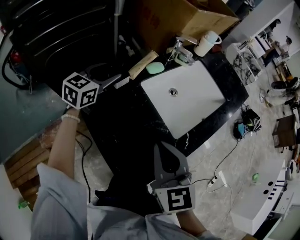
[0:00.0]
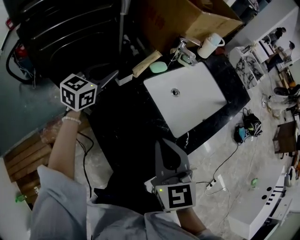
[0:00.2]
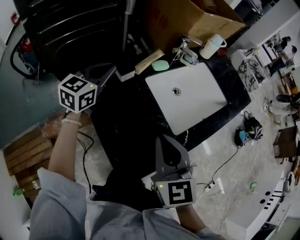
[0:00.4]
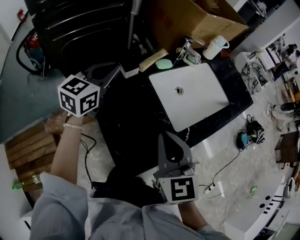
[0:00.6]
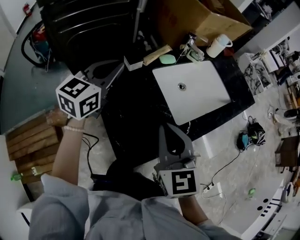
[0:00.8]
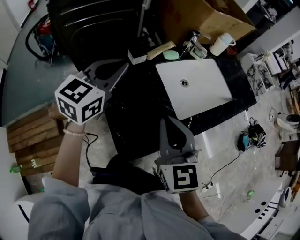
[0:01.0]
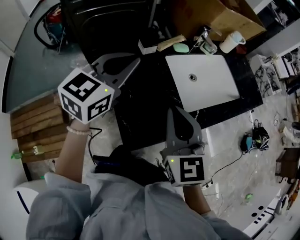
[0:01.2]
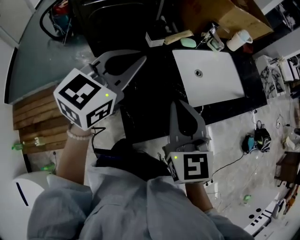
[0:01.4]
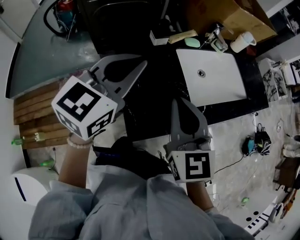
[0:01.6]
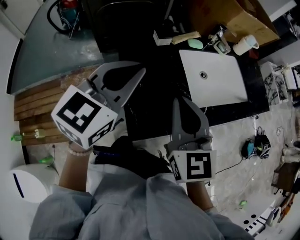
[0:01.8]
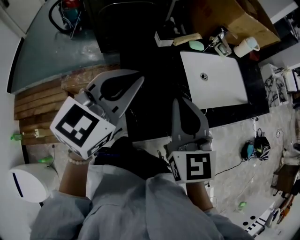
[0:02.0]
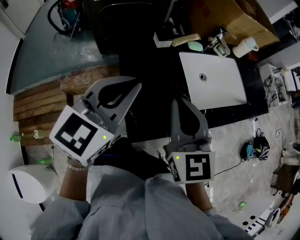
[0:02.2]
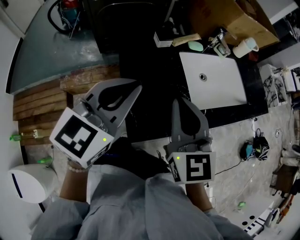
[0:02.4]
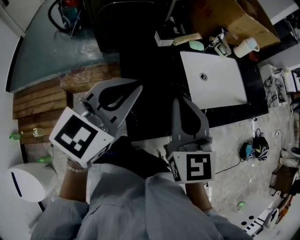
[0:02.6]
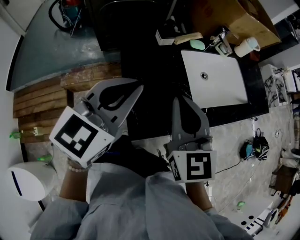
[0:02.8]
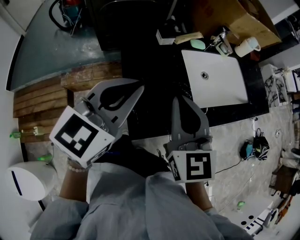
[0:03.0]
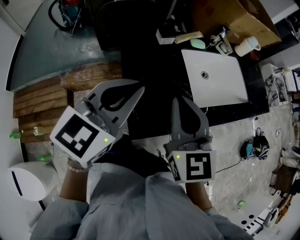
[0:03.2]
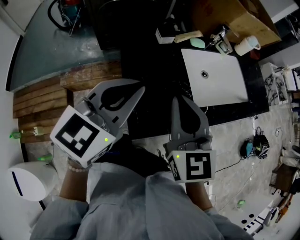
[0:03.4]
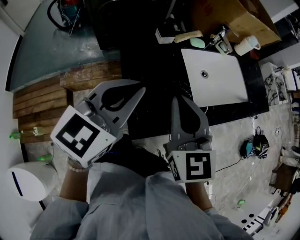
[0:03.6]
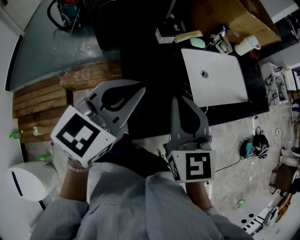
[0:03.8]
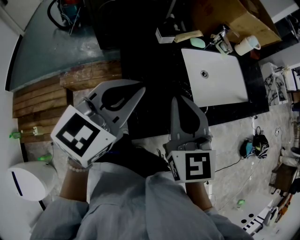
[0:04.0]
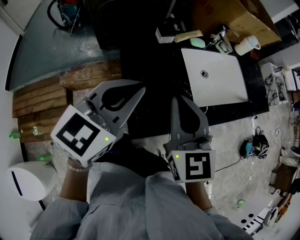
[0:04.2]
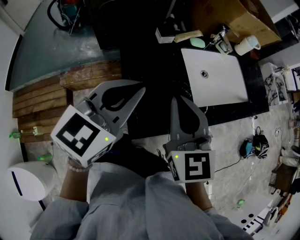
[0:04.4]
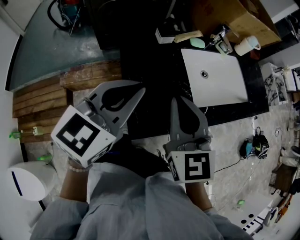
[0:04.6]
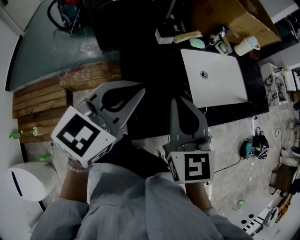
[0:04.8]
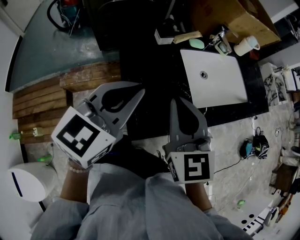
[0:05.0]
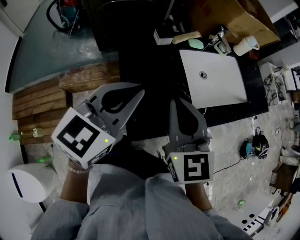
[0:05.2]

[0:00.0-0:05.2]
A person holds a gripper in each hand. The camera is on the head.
0:00.0 to 0:01.8: The left gripper shifts about 30 cm backward and upward, turns by about 20 degrees, and closes its fingers. Meanwhile the right gripper goes about 10 cm backward and upward, and turns by roughly 20 degrees.
0:01.8 to 0:03.4: The grippers move only a little.
0:03.4 to 0:05.2: Both grippers stay about where they are.

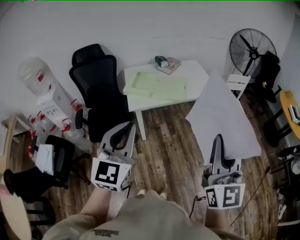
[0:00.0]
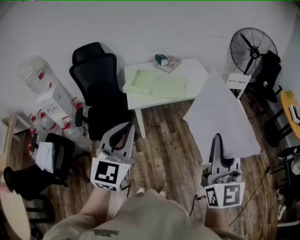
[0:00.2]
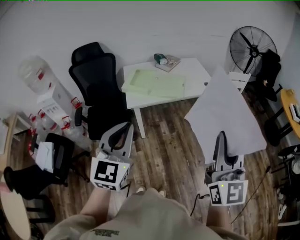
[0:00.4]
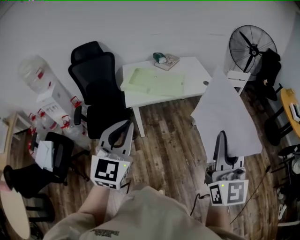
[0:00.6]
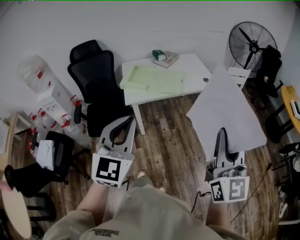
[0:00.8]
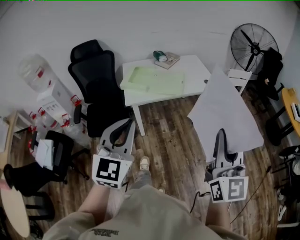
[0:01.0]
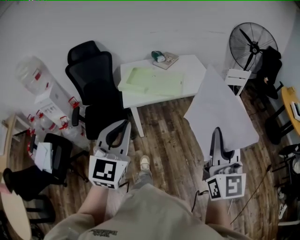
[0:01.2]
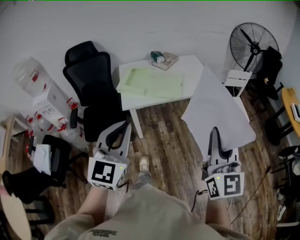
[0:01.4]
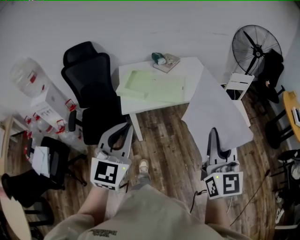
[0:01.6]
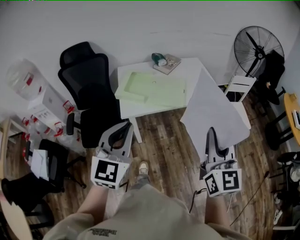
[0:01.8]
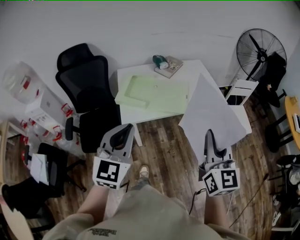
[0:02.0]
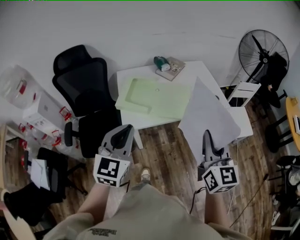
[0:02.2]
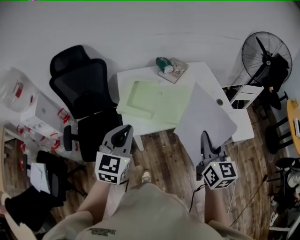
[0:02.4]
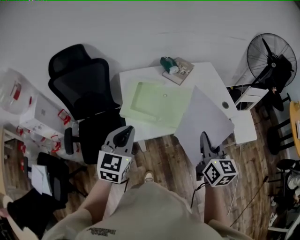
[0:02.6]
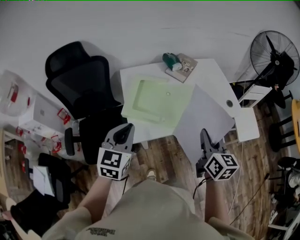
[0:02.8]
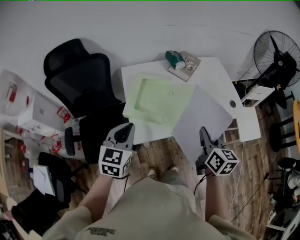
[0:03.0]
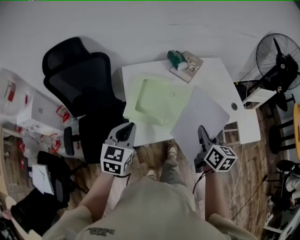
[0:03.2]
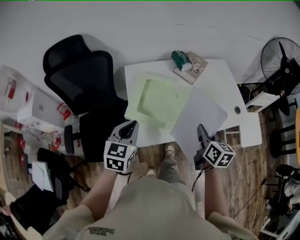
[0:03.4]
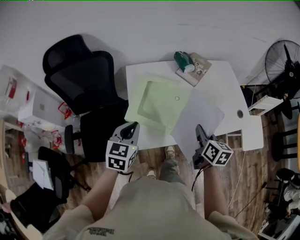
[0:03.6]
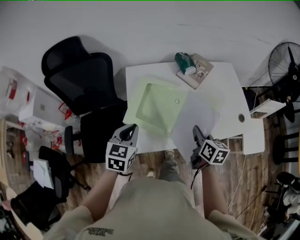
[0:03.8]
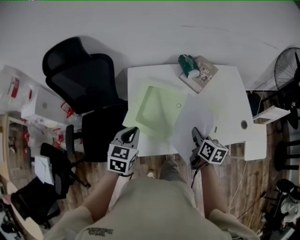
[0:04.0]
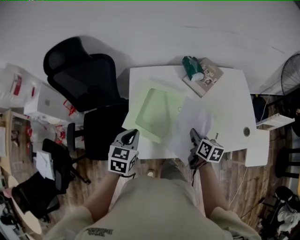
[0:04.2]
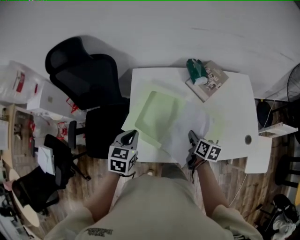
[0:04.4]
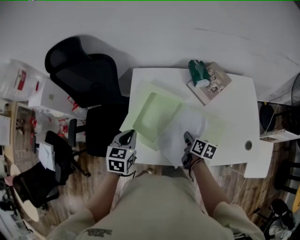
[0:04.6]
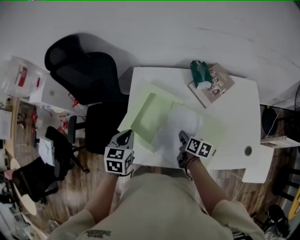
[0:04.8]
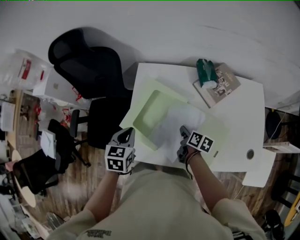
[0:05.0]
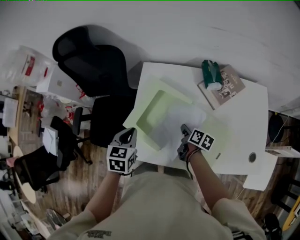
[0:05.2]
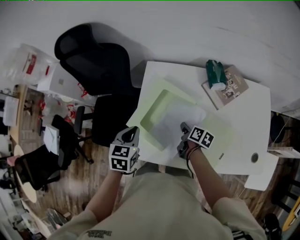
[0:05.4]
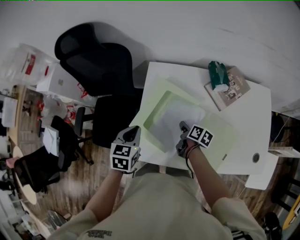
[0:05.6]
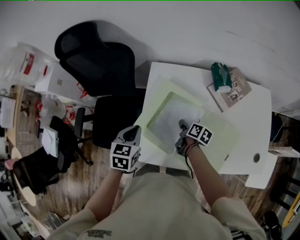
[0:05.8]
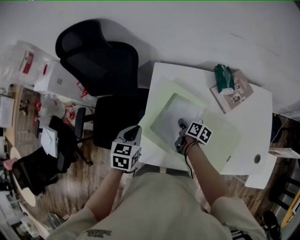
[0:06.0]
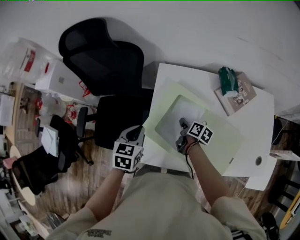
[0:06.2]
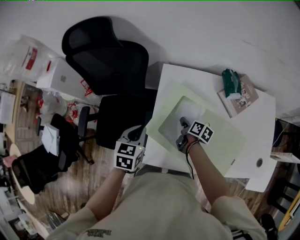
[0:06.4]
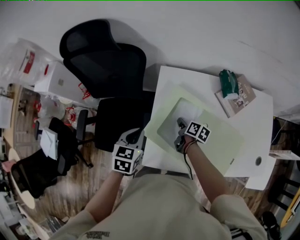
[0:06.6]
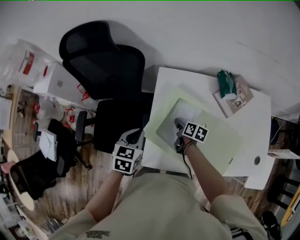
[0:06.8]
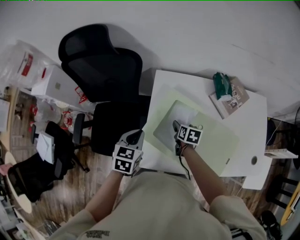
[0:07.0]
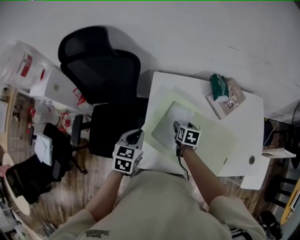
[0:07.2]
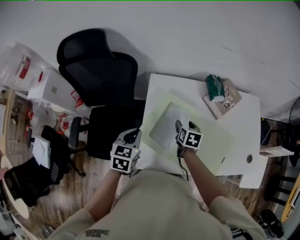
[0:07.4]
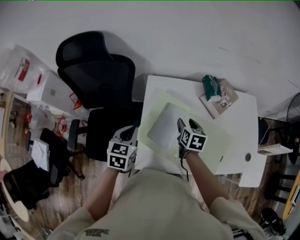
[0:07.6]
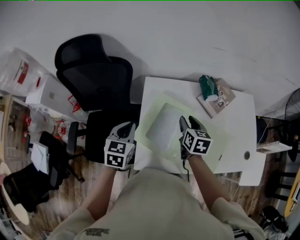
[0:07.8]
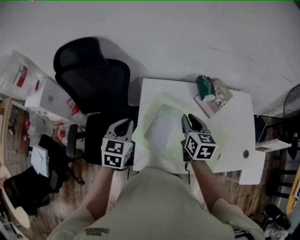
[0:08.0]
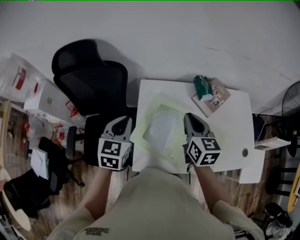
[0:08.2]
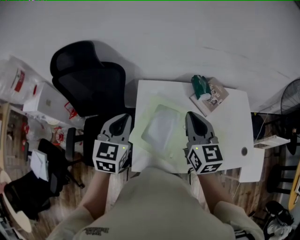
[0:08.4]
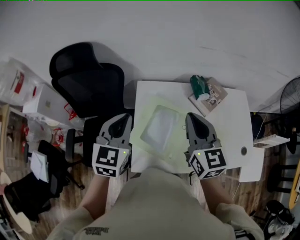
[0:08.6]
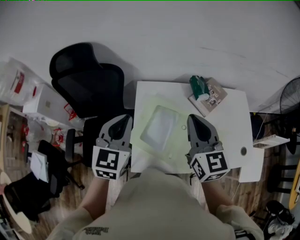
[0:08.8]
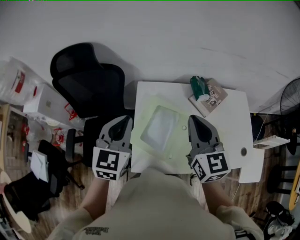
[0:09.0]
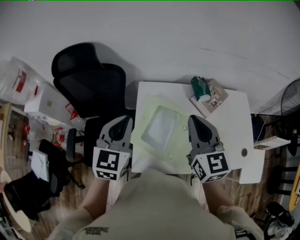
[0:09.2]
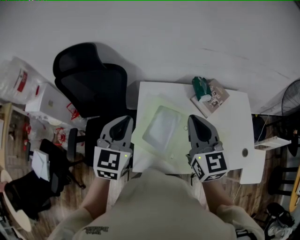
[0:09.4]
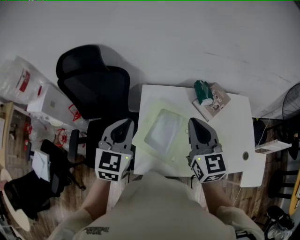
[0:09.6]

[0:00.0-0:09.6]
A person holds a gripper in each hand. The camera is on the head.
0:00.0 to 0:01.6: The left gripper heads forward, covering approximately 10 cm, while the right gripper goes about 15 cm forward and downward.
0:01.6 to 0:03.2: The pair of grippers is taken forward and to the left, approximately 40 cm. The two grippers go approximately 20 cm downward. The right gripper rotates some 40 degrees, while the left gripper swivels approximately 30 degrees.
0:03.2 to 0:04.8: The left gripper shifts by approximately 20 cm, and changes its angle by approximately 30 degrees. The right gripper heads downward, covering roughly 25 cm, and rotates some 40 degrees.
0:04.8 to 0:06.4: The right gripper travels to the left and forward by approximately 20 cm. Meanwhile the left gripper travels to the left by about 10 cm.
0:06.4 to 0:08.0: The left gripper is displaced upward by roughly 10 cm, while the right gripper goes some 25 cm upward, twists some 40 degrees counterclockwise, seen from behind, and opens, then closes again.
0:08.0 to 0:09.6: Both grippers move upward, approximately 10 cm. The right gripper changes its angle by about 20 degrees.

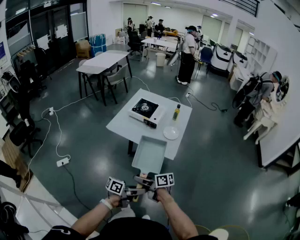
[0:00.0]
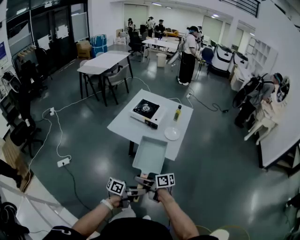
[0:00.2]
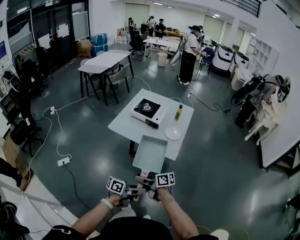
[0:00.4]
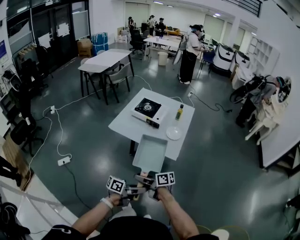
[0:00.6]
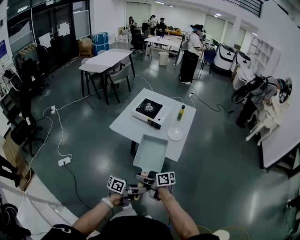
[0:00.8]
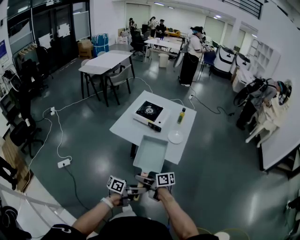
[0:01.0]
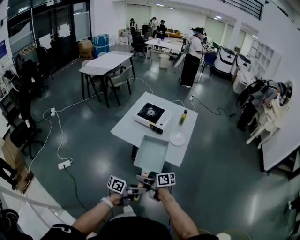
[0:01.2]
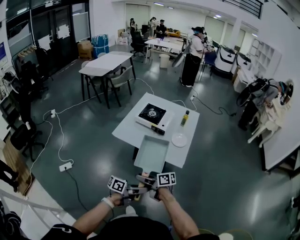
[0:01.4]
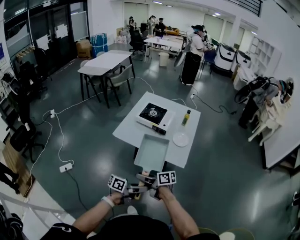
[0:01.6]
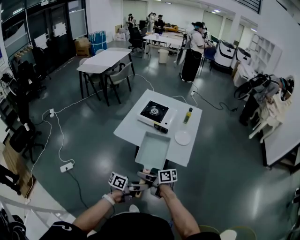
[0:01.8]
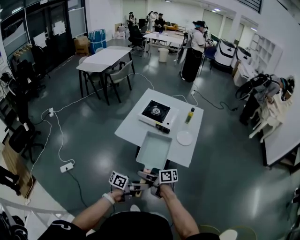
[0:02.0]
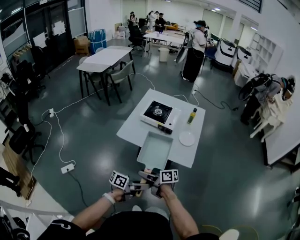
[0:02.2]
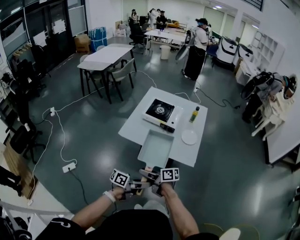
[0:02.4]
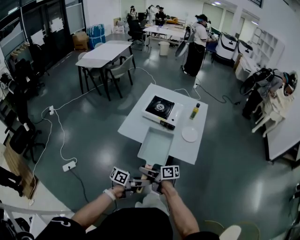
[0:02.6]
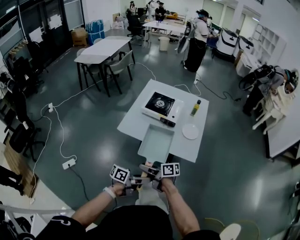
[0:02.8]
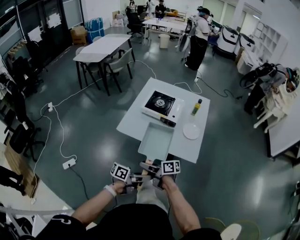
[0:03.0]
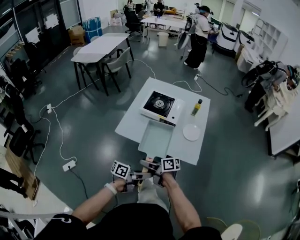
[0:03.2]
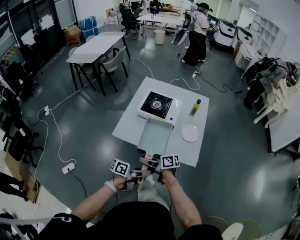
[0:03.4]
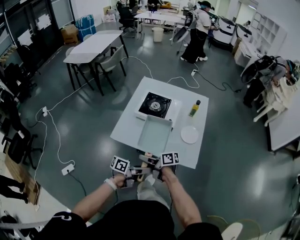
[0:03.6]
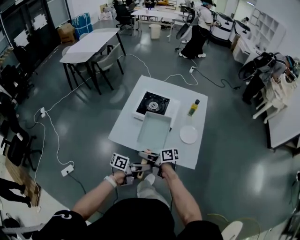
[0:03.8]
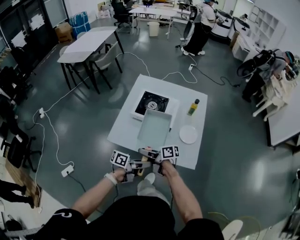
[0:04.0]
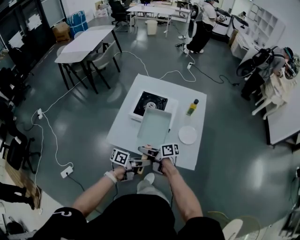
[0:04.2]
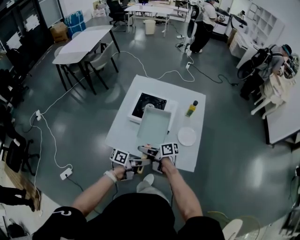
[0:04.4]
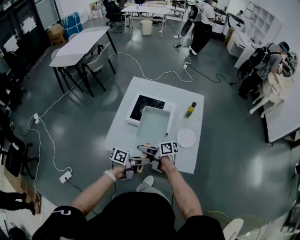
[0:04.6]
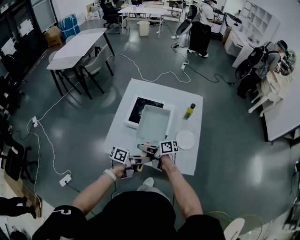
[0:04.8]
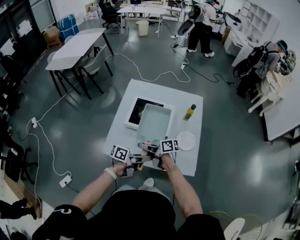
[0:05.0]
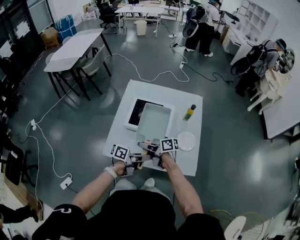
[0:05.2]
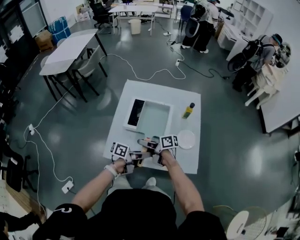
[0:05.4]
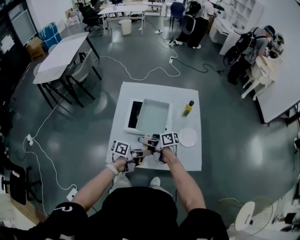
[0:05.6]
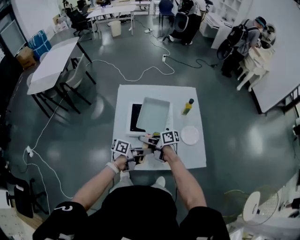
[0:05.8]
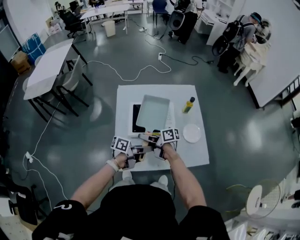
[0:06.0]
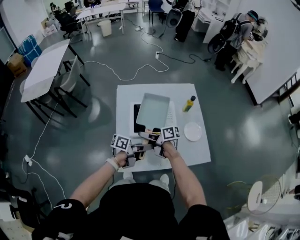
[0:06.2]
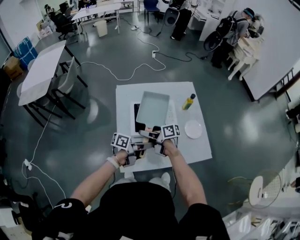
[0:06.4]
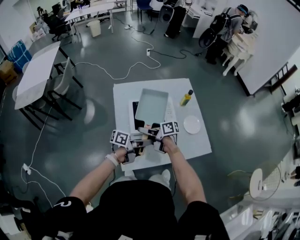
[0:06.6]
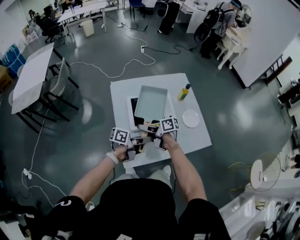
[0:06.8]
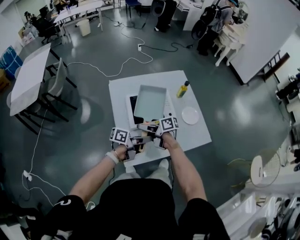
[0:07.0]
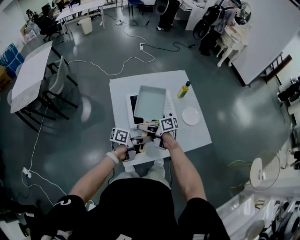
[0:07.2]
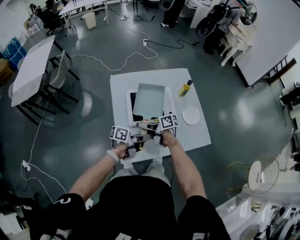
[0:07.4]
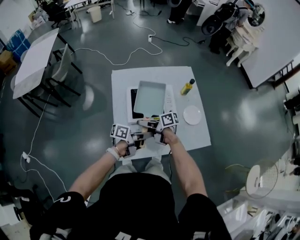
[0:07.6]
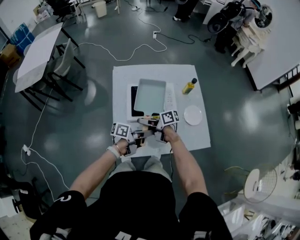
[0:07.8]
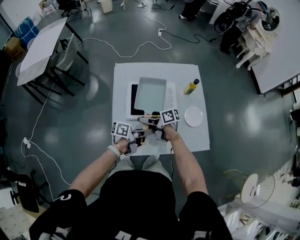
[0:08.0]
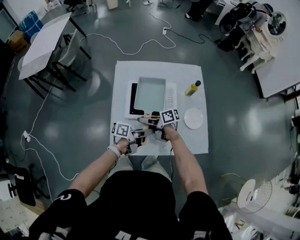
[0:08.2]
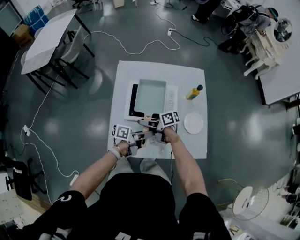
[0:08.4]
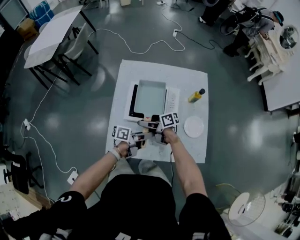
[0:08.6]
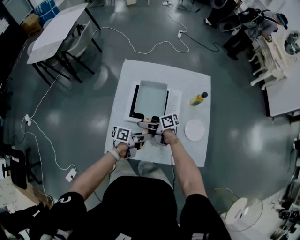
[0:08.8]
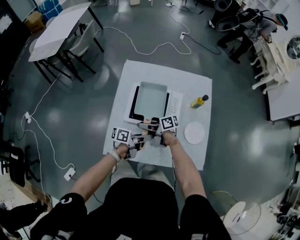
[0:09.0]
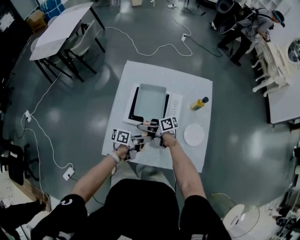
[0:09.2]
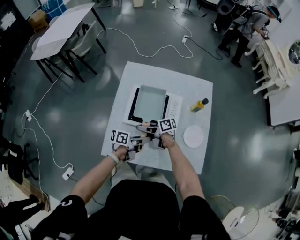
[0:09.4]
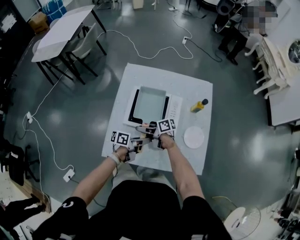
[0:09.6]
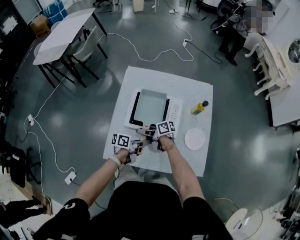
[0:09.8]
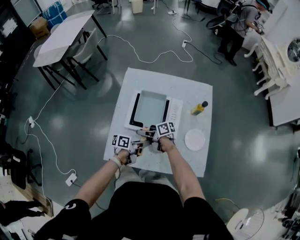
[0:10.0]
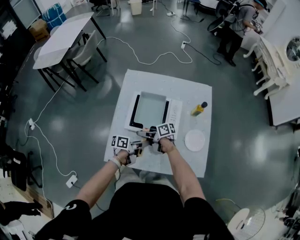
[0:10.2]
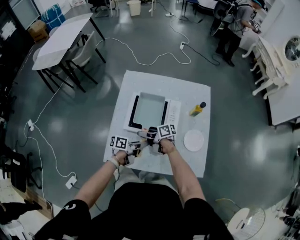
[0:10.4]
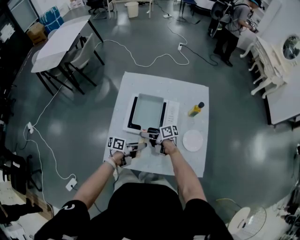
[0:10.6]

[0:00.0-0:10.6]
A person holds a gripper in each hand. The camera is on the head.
0:00.0 to 0:01.6: The left gripper shifts by some 10 cm, while the right gripper ends up roughly 10 cm from where it was.
0:01.6 to 0:03.0: The left gripper ends up roughly 10 cm from where it was; the right gripper shifts by roughly 10 cm.
0:03.0 to 0:04.6: The right gripper ends up some 30 cm from where it was. Meanwhile the left gripper shifts by roughly 25 cm.
0:04.6 to 0:06.0: The left gripper changes place by roughly 20 cm; the right gripper ends up some 20 cm from where it was.
0:06.0 to 0:07.6: There are only small adjustments of the grippers.
0:07.6 to 0:09.0: The two grippers go about 10 cm downward. The left gripper rotates some 20 degrees.
0:09.0 to 0:10.6: The grippers make only small movements.
